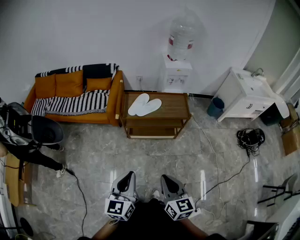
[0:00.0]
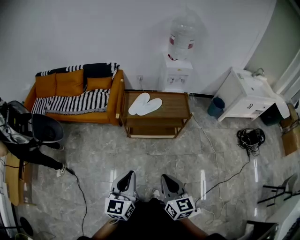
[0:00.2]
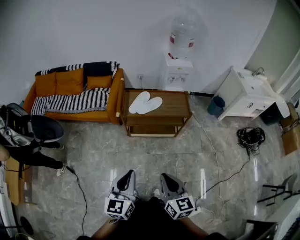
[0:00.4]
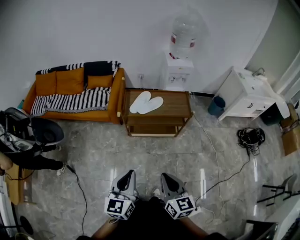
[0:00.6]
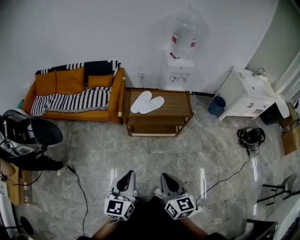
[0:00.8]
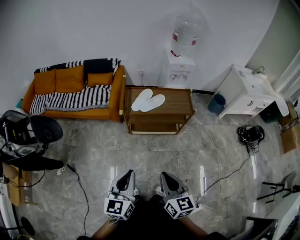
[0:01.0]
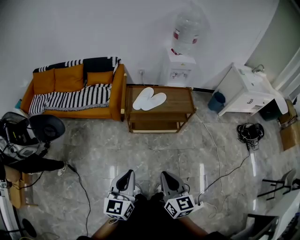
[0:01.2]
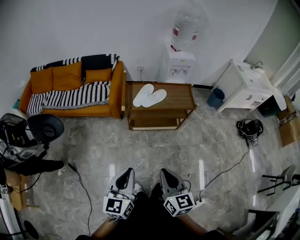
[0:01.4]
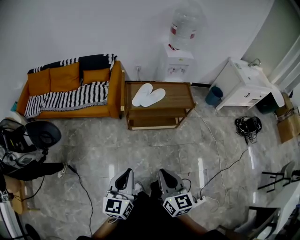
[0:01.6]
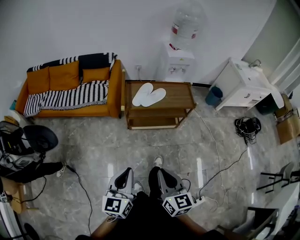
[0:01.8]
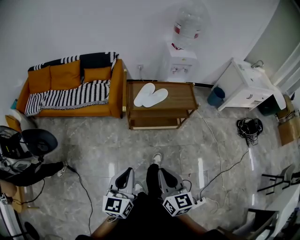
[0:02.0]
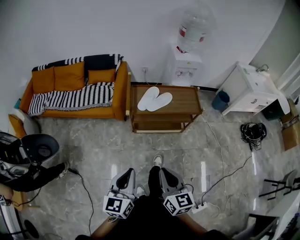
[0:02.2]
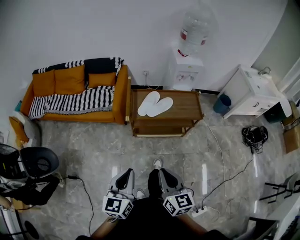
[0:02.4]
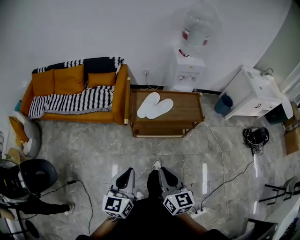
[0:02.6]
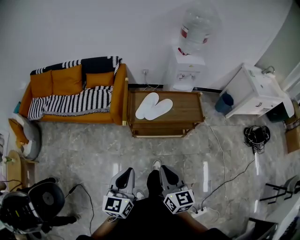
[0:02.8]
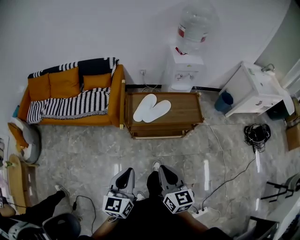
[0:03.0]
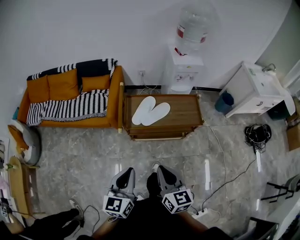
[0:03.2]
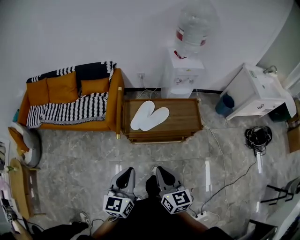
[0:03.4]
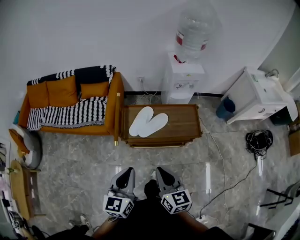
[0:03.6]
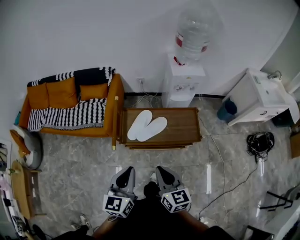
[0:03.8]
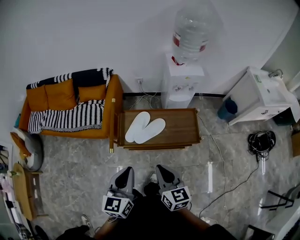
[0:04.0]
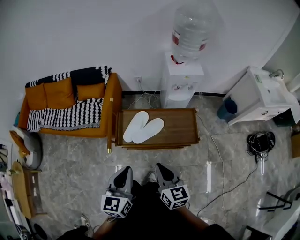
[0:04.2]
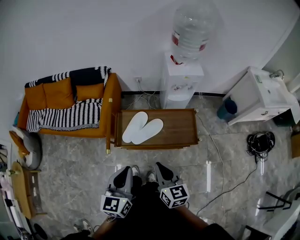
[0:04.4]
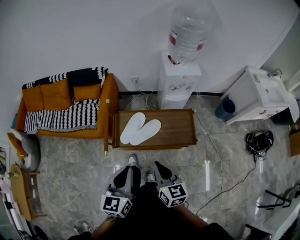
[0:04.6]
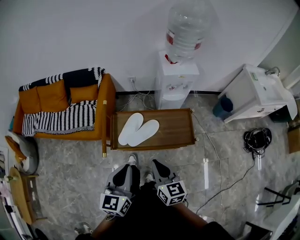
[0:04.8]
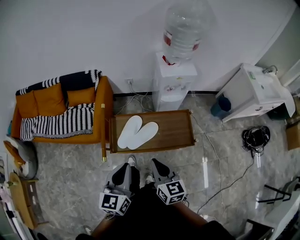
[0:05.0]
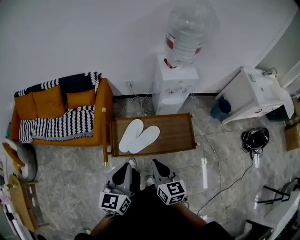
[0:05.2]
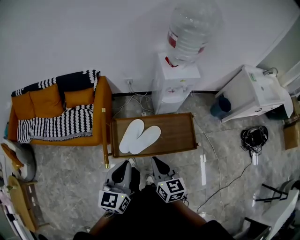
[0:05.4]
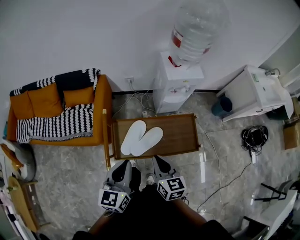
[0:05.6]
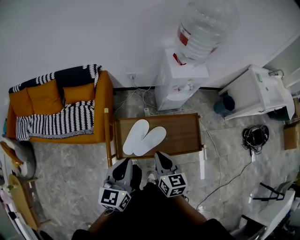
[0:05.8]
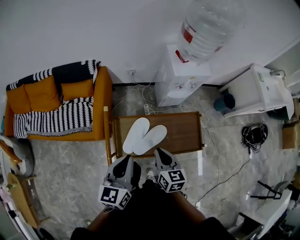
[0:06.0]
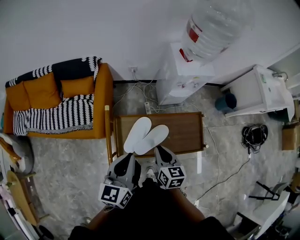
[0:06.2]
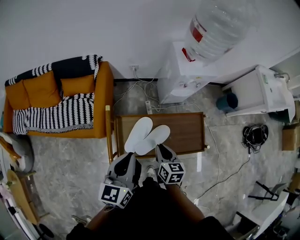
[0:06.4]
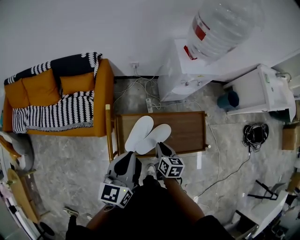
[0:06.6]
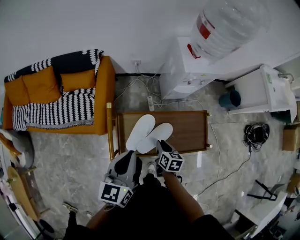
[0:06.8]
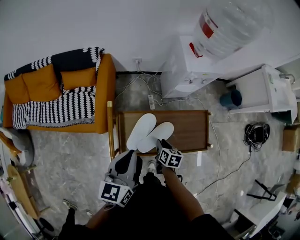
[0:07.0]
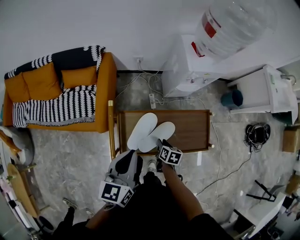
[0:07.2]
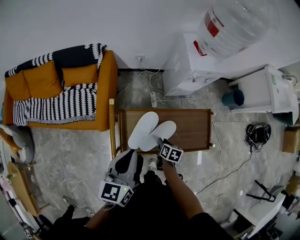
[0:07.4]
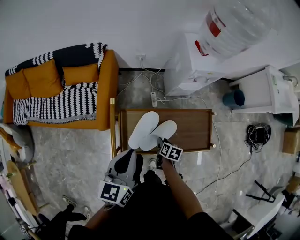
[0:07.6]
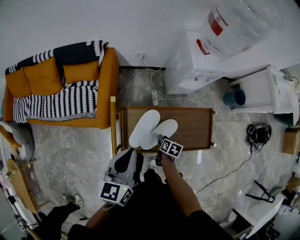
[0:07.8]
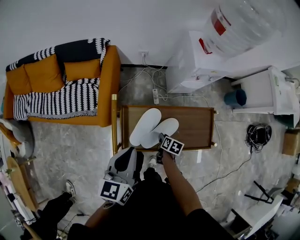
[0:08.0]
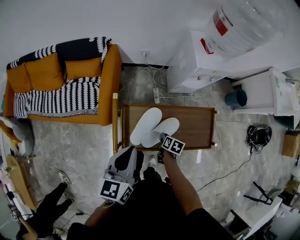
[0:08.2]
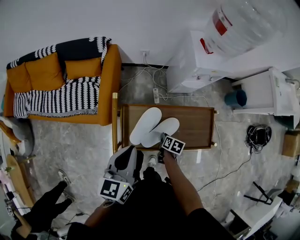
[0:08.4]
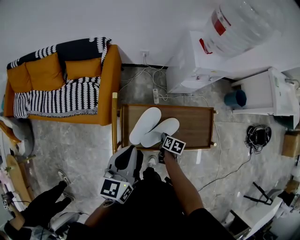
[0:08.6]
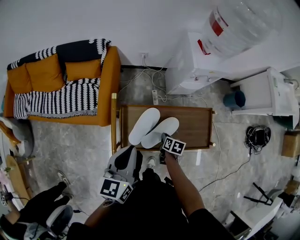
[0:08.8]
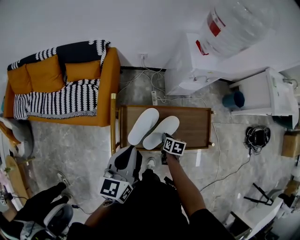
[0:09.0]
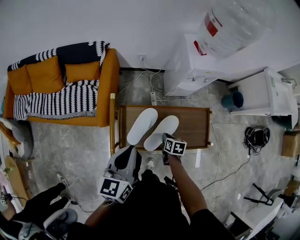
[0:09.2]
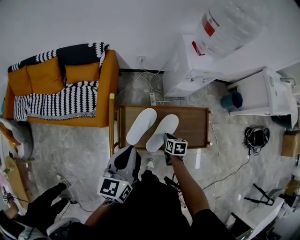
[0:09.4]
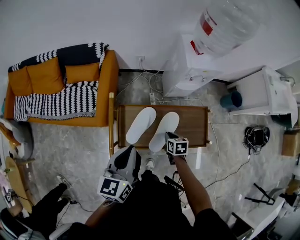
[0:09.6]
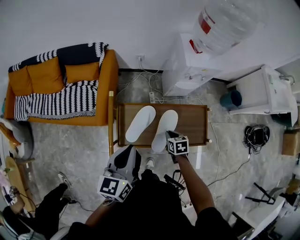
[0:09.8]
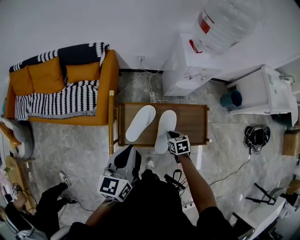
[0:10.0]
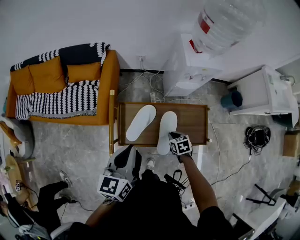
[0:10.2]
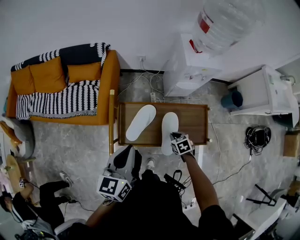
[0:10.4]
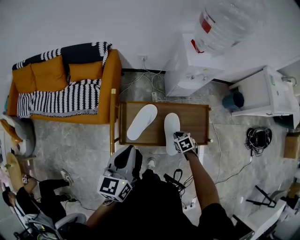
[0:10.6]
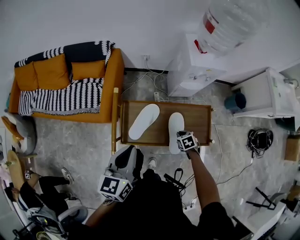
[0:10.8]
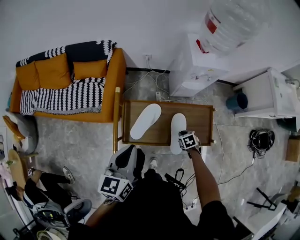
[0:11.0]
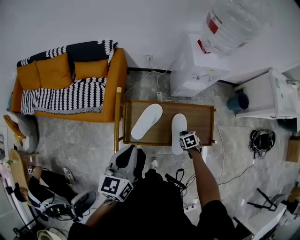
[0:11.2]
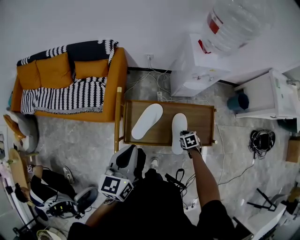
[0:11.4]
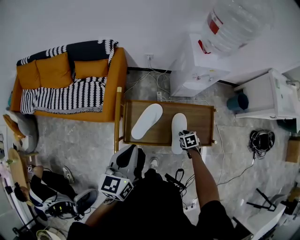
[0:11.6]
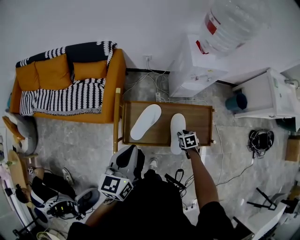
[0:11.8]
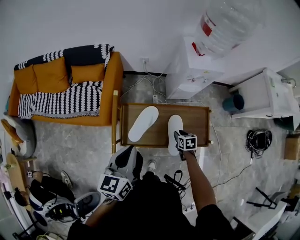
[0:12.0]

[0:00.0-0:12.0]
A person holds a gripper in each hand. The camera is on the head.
0:00.0 to 0:01.6: Both grippers travel together to the left, roughly 10 cm.
0:01.6 to 0:03.0: Both grippers travel together forward, some 25 cm.
0:03.0 to 0:04.4: The grippers both shift forward and to the right by some 25 cm.
0:04.4 to 0:06.0: Both grippers travel together forward, about 20 cm.
0:06.0 to 0:07.6: The left gripper ends up approximately 5 cm from where it was. The right gripper goes roughly 25 cm downward, swivels approximately 40 degrees, and opens.
0:07.6 to 0:09.0: The grippers make only small movements.
0:09.0 to 0:10.4: The right gripper moves about 5 cm, and rotates around the line of its fingers by about 40 degrees, counterclockwise from behind. The left gripper shifts by approximately 5 cm.

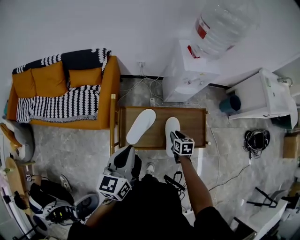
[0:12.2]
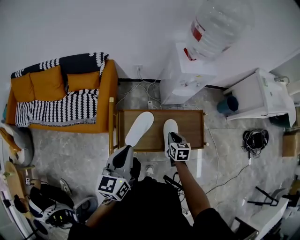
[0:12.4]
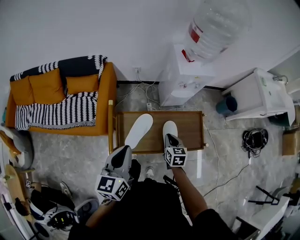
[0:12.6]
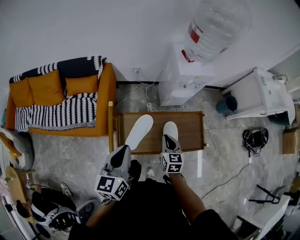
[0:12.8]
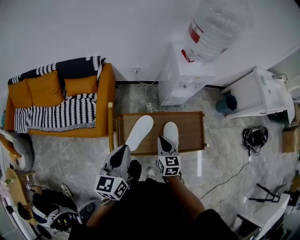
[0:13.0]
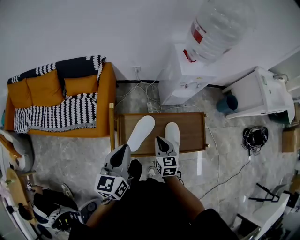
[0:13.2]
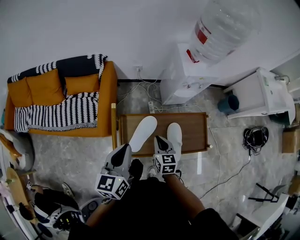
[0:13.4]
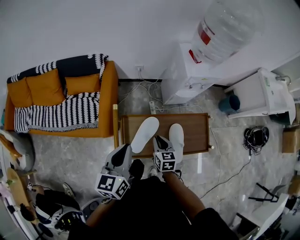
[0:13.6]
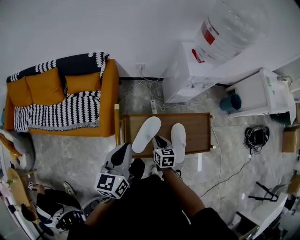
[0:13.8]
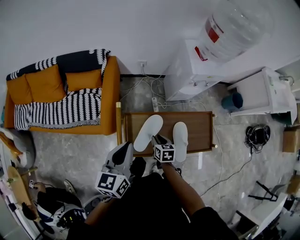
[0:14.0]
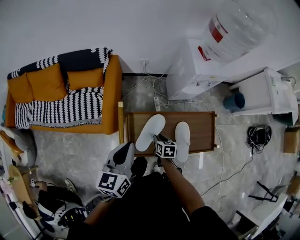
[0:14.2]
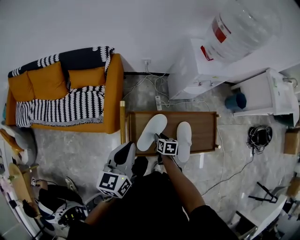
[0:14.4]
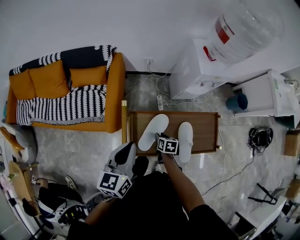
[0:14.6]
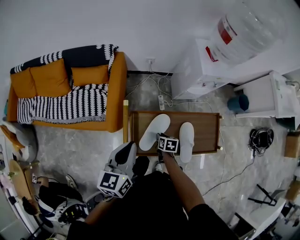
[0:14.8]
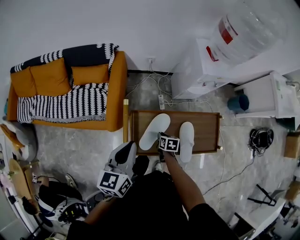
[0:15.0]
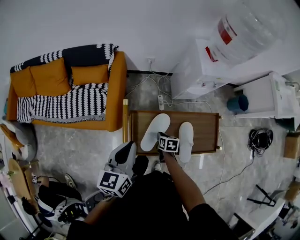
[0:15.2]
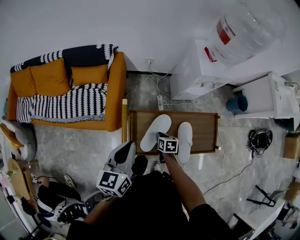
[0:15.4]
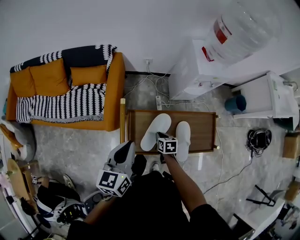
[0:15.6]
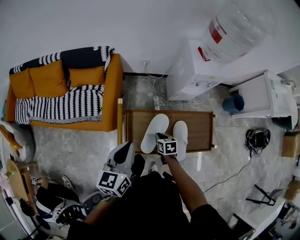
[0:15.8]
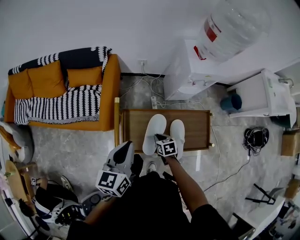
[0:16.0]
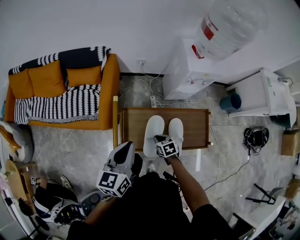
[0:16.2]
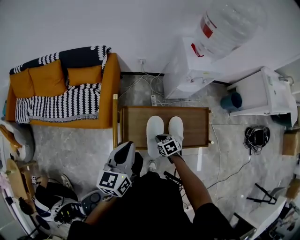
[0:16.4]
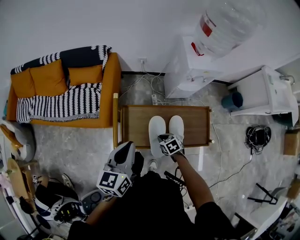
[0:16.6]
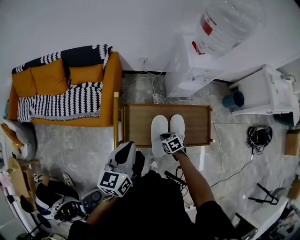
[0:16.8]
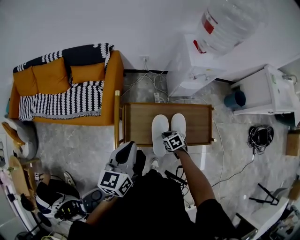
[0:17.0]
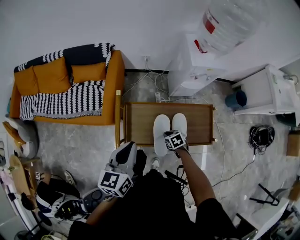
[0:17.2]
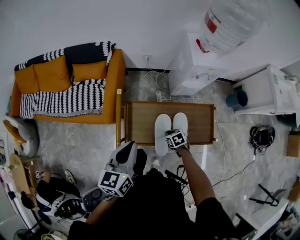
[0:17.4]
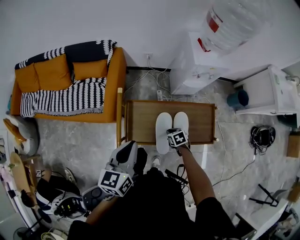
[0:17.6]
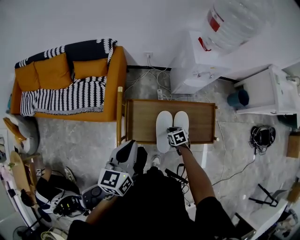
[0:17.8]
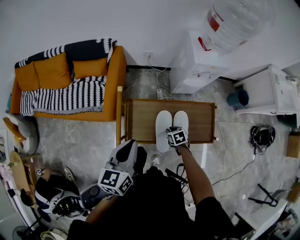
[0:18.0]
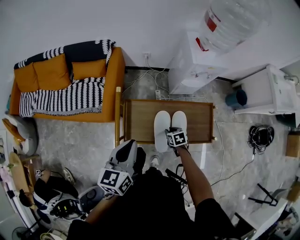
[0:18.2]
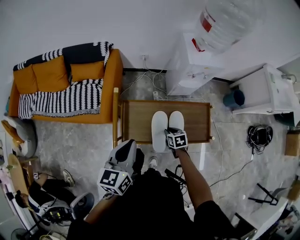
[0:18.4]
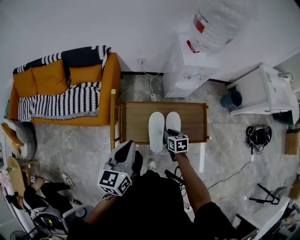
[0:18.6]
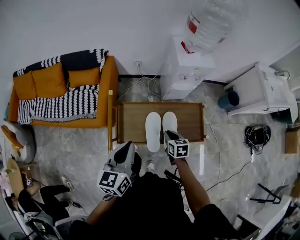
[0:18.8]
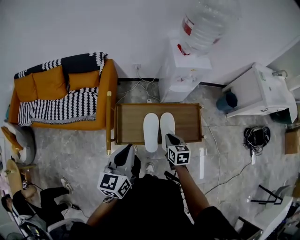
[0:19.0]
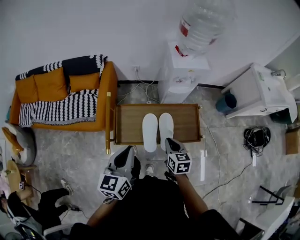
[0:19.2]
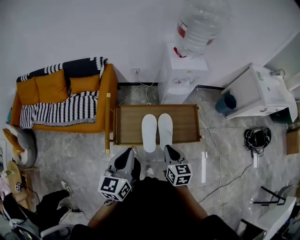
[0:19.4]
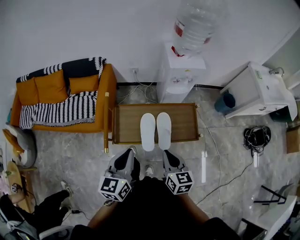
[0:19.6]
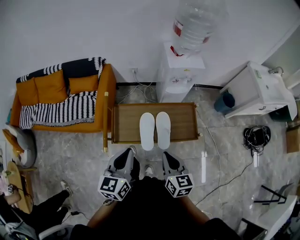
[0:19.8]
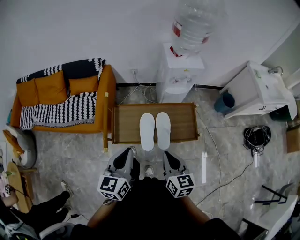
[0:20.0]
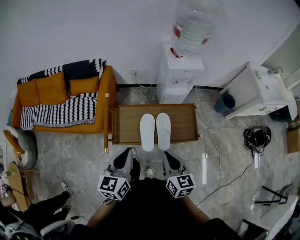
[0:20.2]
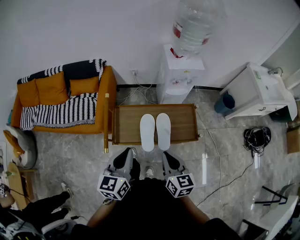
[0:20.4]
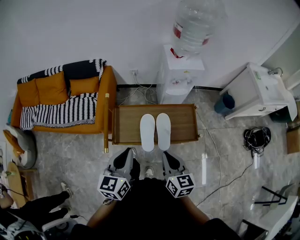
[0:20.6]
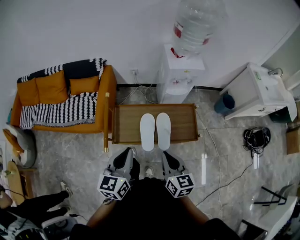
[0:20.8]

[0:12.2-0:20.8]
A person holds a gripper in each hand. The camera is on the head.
0:12.2 to 0:13.6: The left gripper shifts roughly 10 cm forward and to the left, while the right gripper travels to the left and upward by roughly 15 cm, and closes its fingers.
0:13.6 to 0:15.0: The right gripper moves downward, roughly 15 cm, and turns by some 30 degrees.
0:15.0 to 0:16.6: The left gripper goes approximately 5 cm backward; the right gripper travels backward and upward by roughly 10 cm, and swivels some 40 degrees.
0:16.6 to 0:18.0: The right gripper ends up approximately 5 cm from where it was.
0:18.0 to 0:19.4: The left gripper travels backward and to the right by approximately 10 cm, while the right gripper heads upward and backward, covering about 30 cm, and angles its fingers upward, by approximately 30 degrees.
0:19.4 to 0:20.8: The right gripper is displaced upward by some 5 cm.

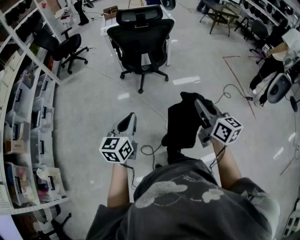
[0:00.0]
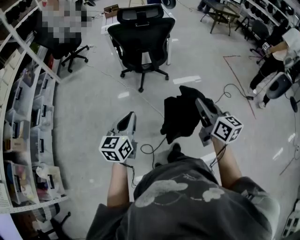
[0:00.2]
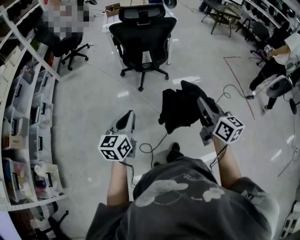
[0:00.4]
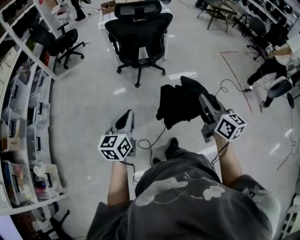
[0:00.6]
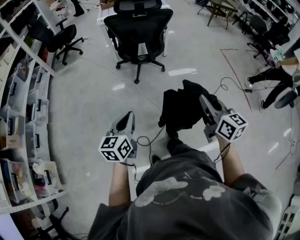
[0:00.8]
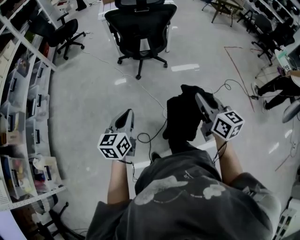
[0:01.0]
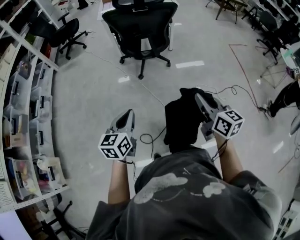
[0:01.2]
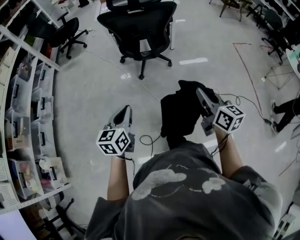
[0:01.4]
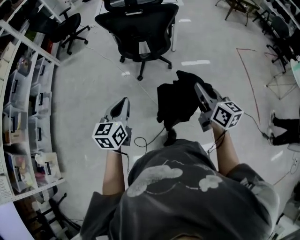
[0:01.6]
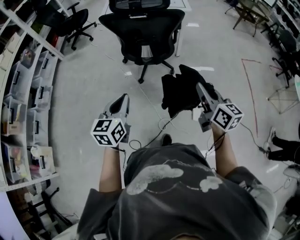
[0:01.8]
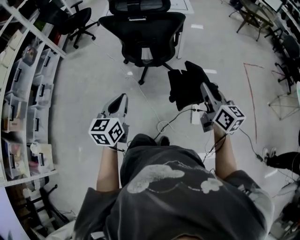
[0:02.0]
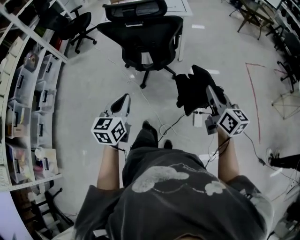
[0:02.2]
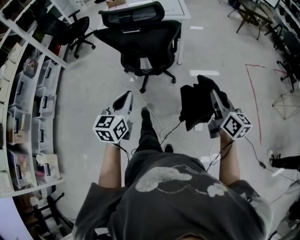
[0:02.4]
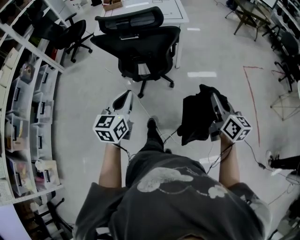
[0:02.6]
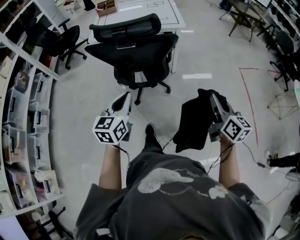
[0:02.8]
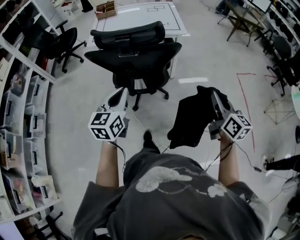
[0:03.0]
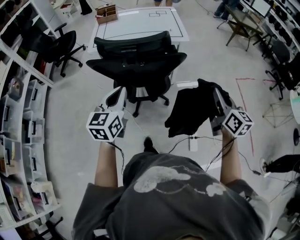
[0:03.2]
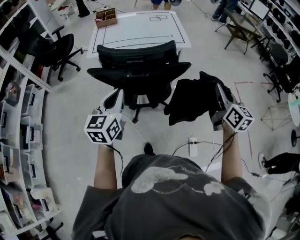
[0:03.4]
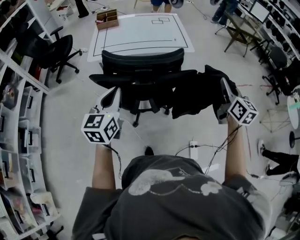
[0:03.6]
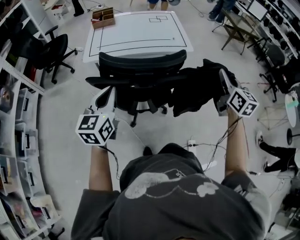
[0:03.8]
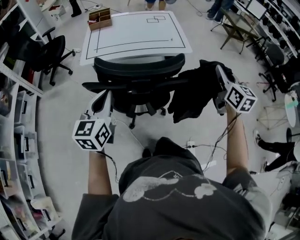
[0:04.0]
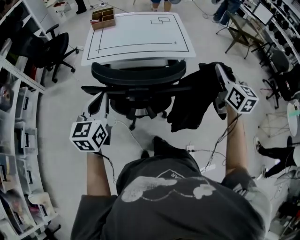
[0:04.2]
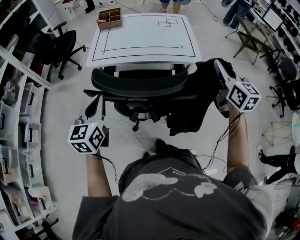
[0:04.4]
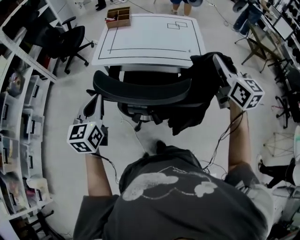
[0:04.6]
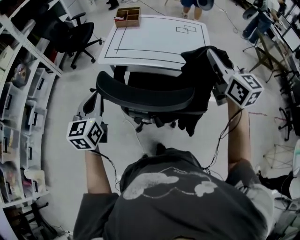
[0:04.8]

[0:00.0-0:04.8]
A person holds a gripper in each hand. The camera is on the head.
0:00.0 to 0:01.6: Both grippers travel together forward and to the right, roughly 20 cm.
0:01.6 to 0:03.2: The grippers both shift forward by some 35 cm.
0:03.2 to 0:04.8: The left gripper changes place by roughly 20 cm, and changes its angle by some 20 degrees; the right gripper shifts by about 40 cm, and turns by some 30 degrees.
